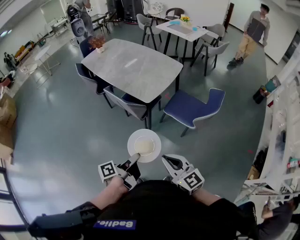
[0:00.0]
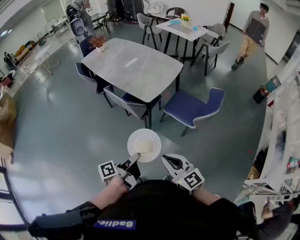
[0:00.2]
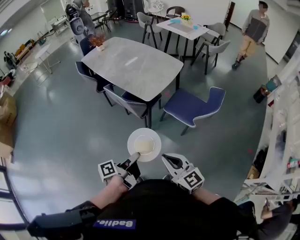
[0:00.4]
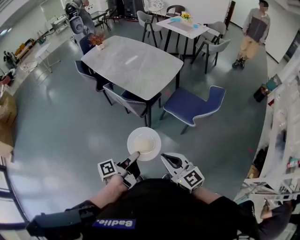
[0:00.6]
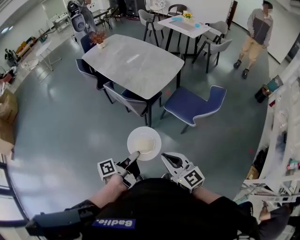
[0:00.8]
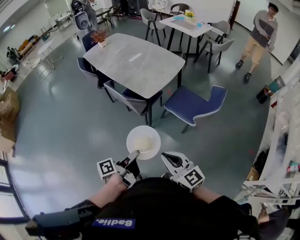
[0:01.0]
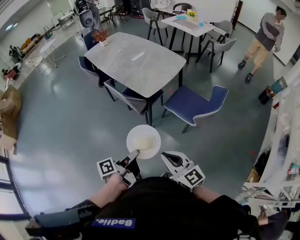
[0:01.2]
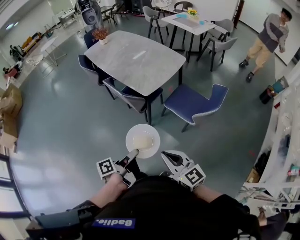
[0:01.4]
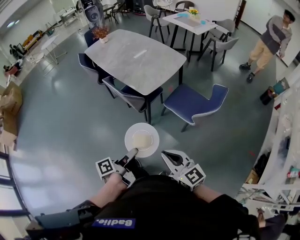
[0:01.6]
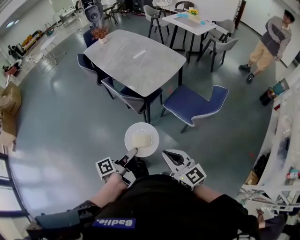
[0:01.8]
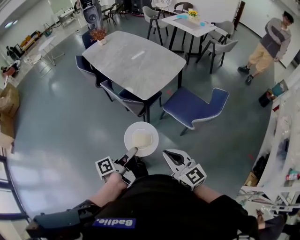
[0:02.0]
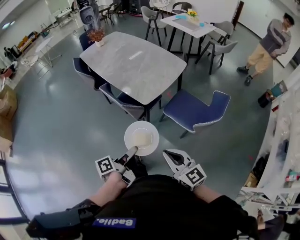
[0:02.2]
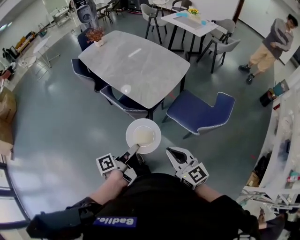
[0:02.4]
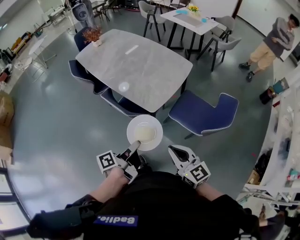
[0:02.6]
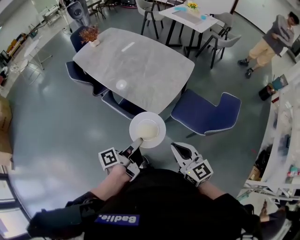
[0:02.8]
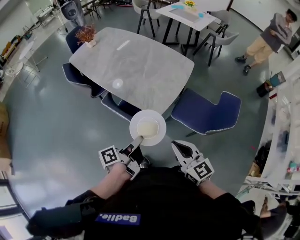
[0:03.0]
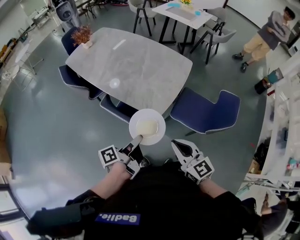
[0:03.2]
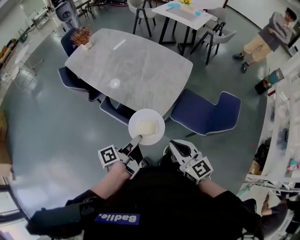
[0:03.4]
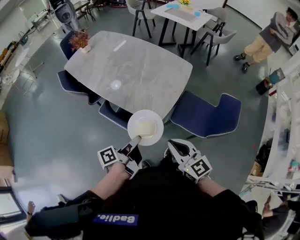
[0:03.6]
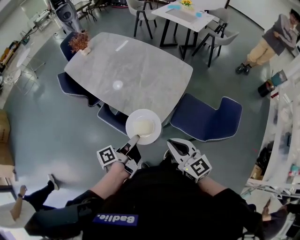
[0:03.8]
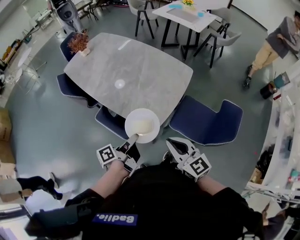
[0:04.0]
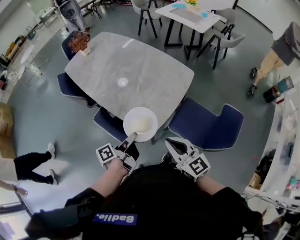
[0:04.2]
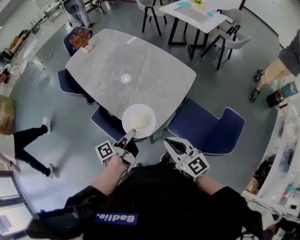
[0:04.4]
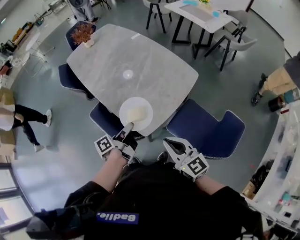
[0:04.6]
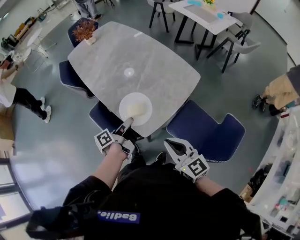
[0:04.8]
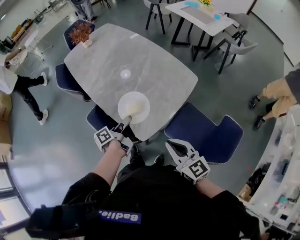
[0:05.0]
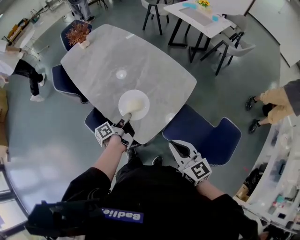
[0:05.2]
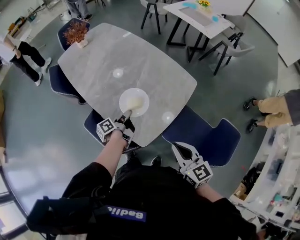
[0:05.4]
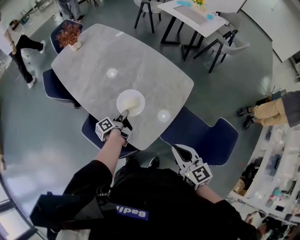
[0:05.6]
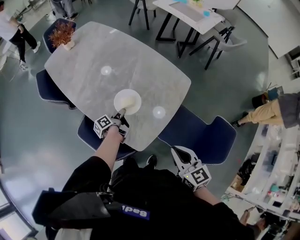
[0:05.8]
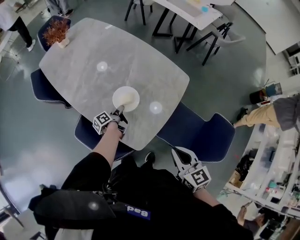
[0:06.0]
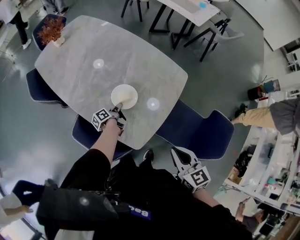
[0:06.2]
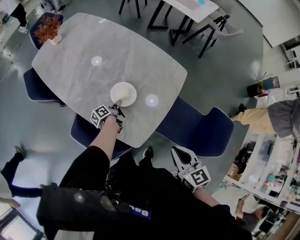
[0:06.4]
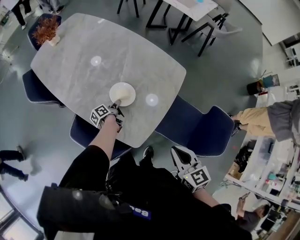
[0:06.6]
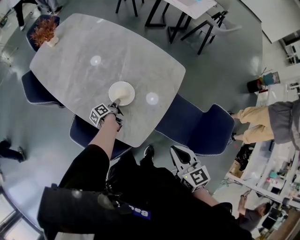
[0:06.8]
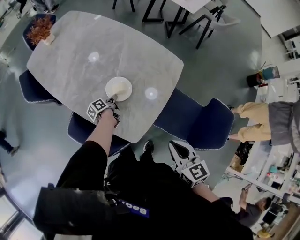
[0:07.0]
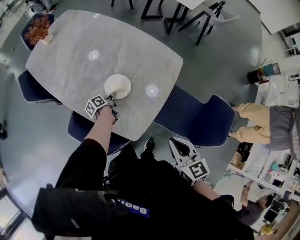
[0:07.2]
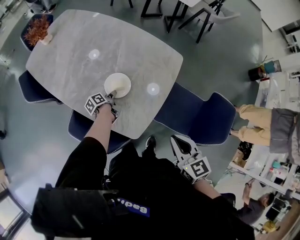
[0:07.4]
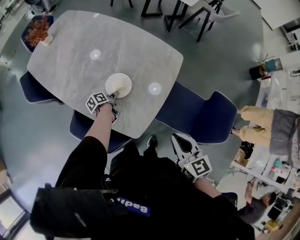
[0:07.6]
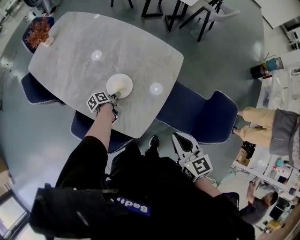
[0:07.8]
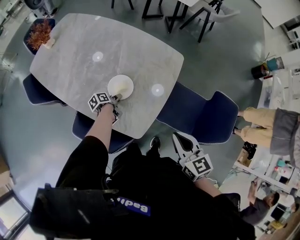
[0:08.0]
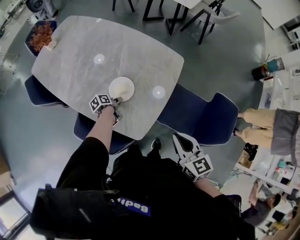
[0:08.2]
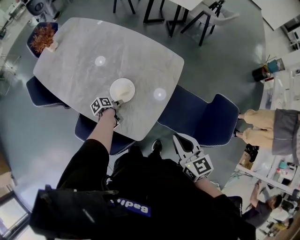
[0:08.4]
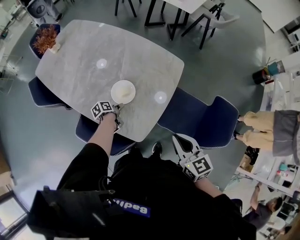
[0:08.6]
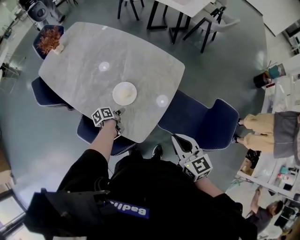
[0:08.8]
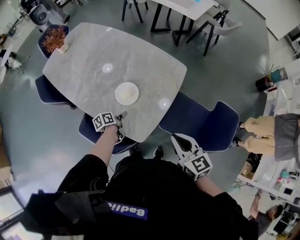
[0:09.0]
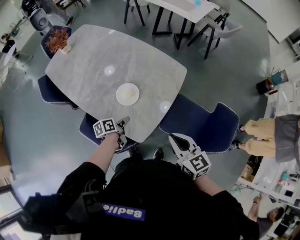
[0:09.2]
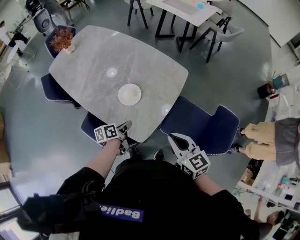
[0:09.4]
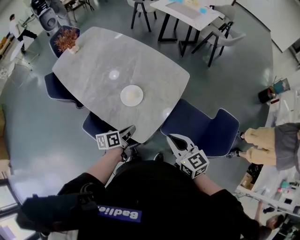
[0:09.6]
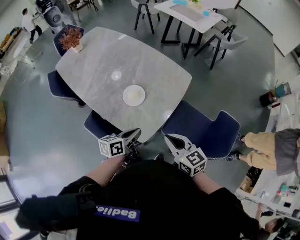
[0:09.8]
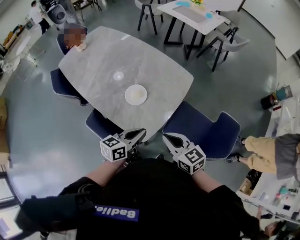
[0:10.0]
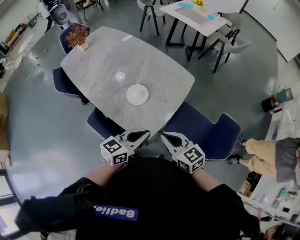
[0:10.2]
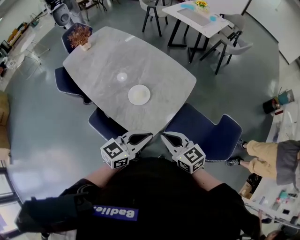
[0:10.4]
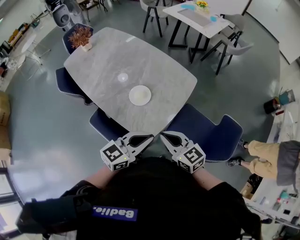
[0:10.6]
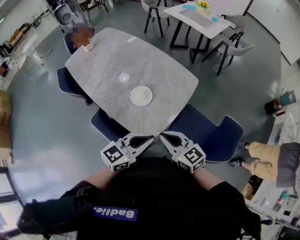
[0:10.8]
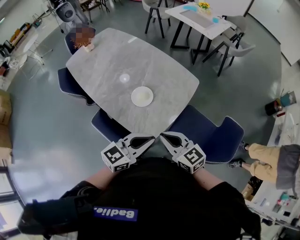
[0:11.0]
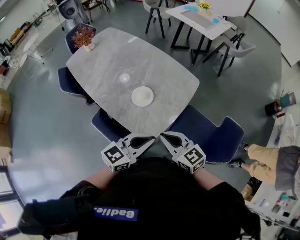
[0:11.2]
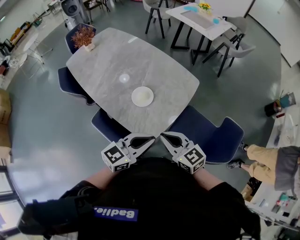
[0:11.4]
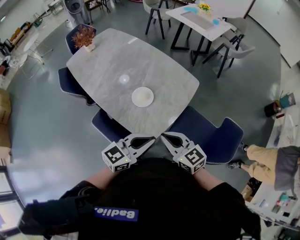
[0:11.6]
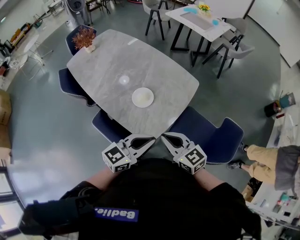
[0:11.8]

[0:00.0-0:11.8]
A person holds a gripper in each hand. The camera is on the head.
0:00.0 to 0:01.4: The right gripper changes place by some 5 cm.
0:01.4 to 0:03.0: The right gripper ends up about 30 cm from where it was.
0:03.0 to 0:04.4: The right gripper changes place by roughly 20 cm.
0:04.4 to 0:06.0: The right gripper ends up roughly 10 cm from where it was, and rotates roughly 20 degrees.
0:08.8 to 0:10.4: The right gripper moves approximately 5 cm, and changes its angle by some 20 degrees.

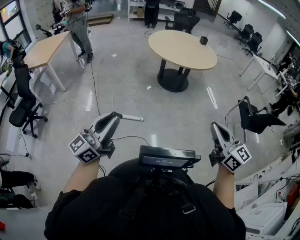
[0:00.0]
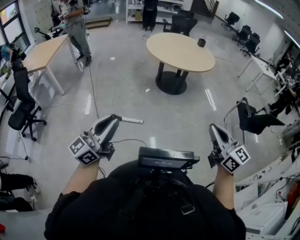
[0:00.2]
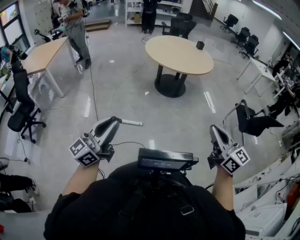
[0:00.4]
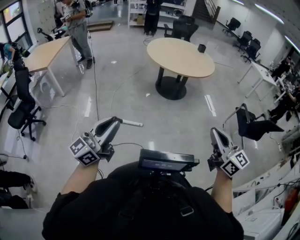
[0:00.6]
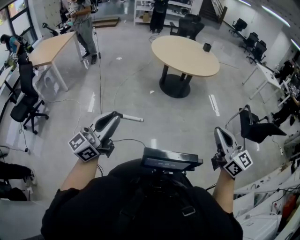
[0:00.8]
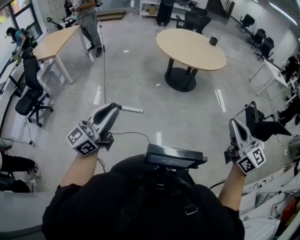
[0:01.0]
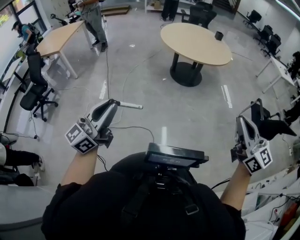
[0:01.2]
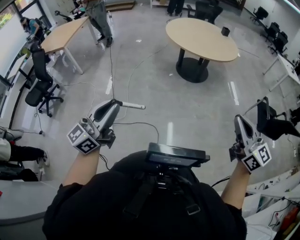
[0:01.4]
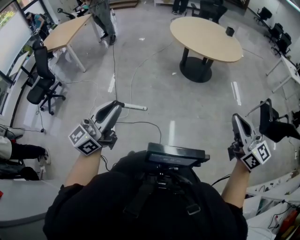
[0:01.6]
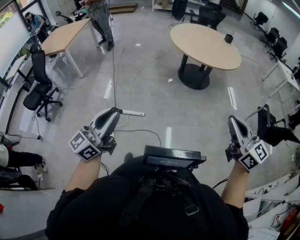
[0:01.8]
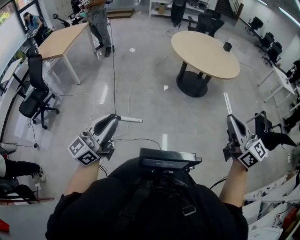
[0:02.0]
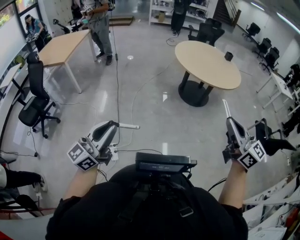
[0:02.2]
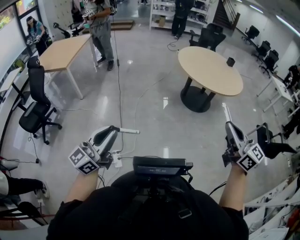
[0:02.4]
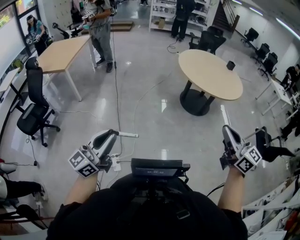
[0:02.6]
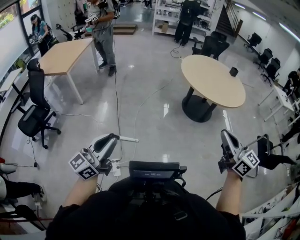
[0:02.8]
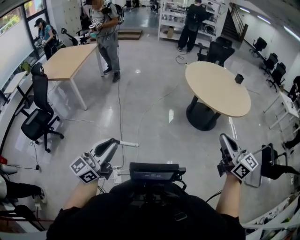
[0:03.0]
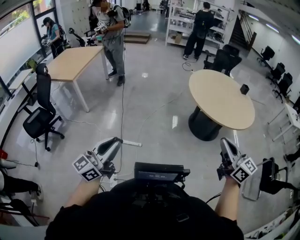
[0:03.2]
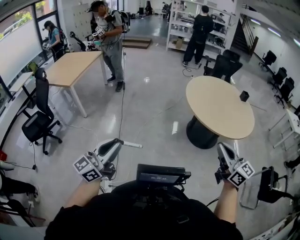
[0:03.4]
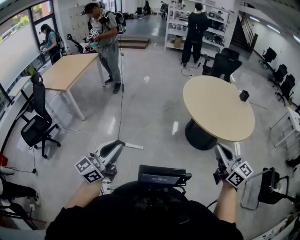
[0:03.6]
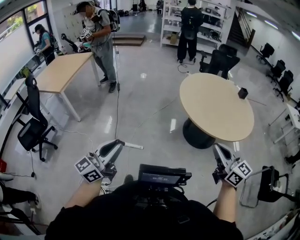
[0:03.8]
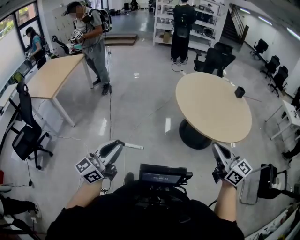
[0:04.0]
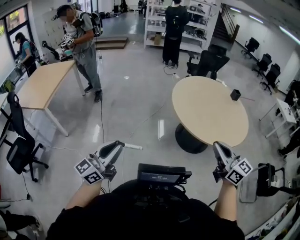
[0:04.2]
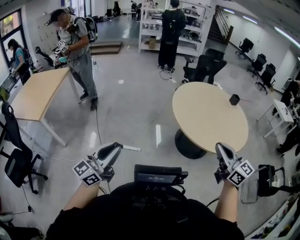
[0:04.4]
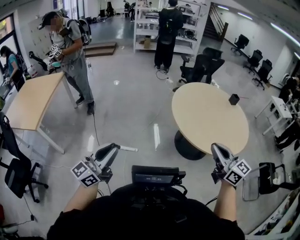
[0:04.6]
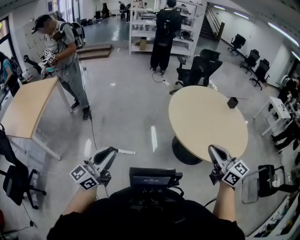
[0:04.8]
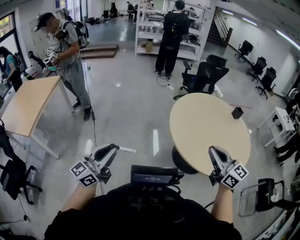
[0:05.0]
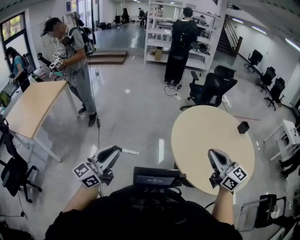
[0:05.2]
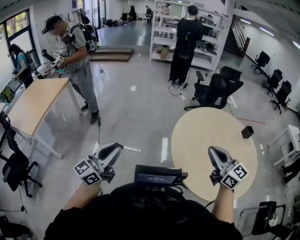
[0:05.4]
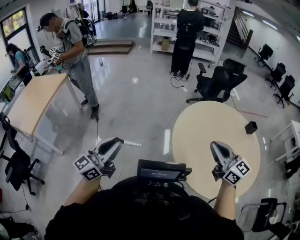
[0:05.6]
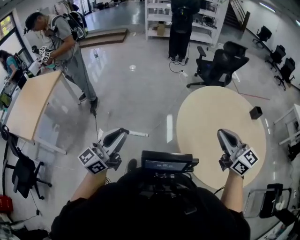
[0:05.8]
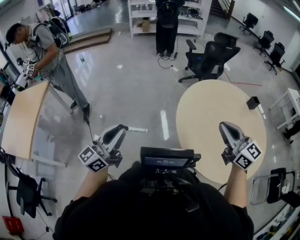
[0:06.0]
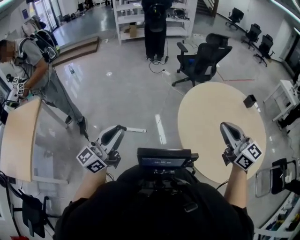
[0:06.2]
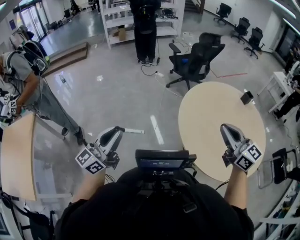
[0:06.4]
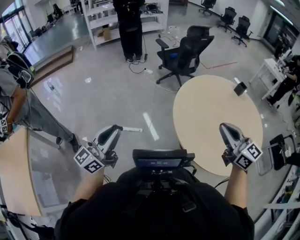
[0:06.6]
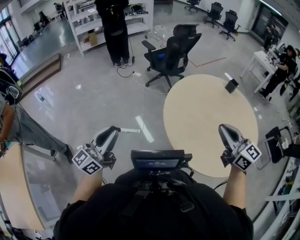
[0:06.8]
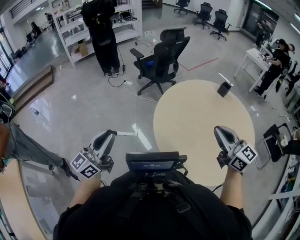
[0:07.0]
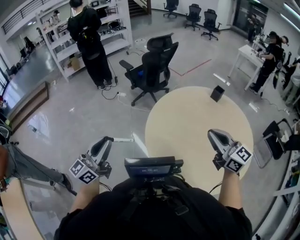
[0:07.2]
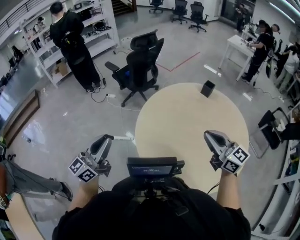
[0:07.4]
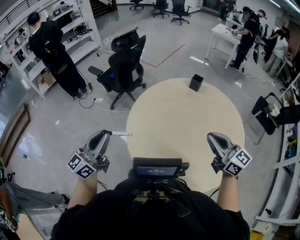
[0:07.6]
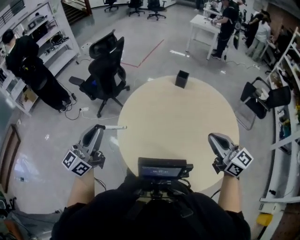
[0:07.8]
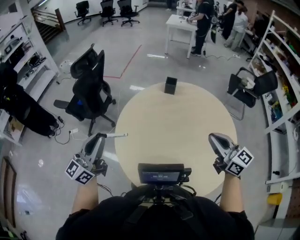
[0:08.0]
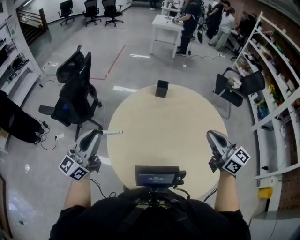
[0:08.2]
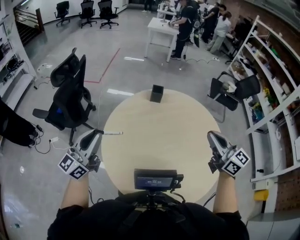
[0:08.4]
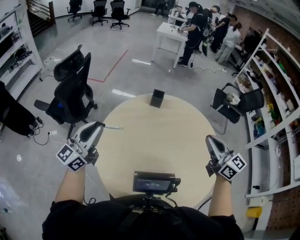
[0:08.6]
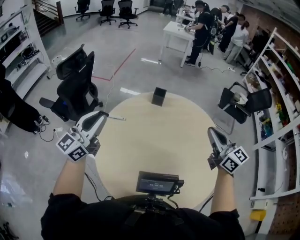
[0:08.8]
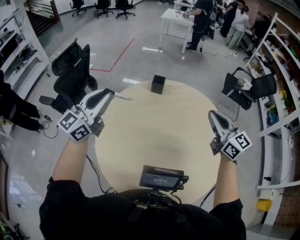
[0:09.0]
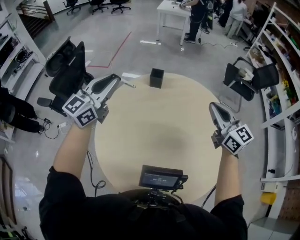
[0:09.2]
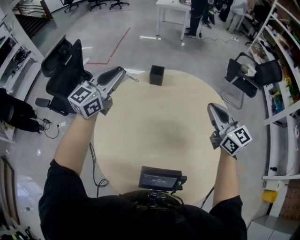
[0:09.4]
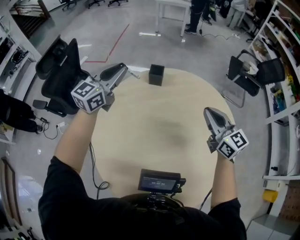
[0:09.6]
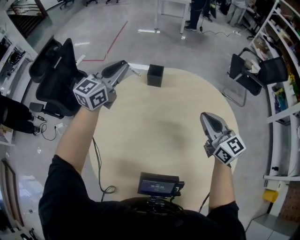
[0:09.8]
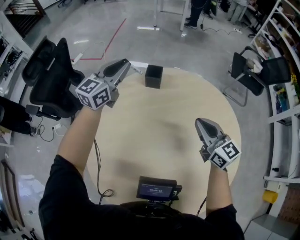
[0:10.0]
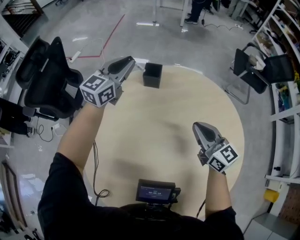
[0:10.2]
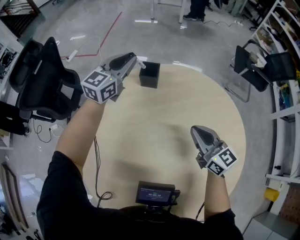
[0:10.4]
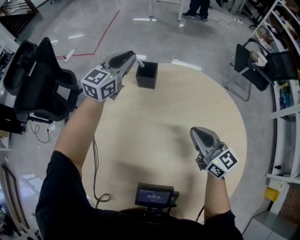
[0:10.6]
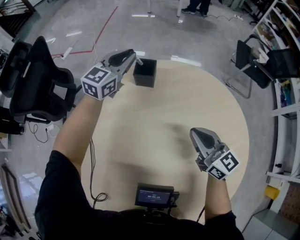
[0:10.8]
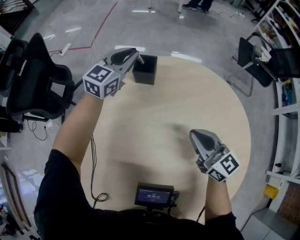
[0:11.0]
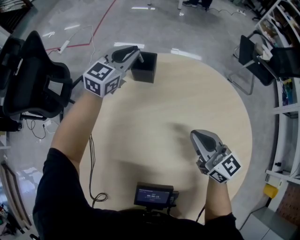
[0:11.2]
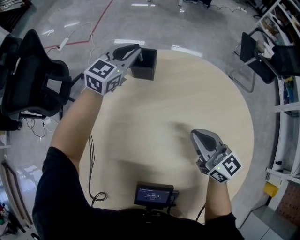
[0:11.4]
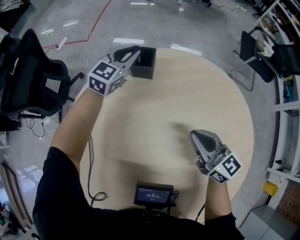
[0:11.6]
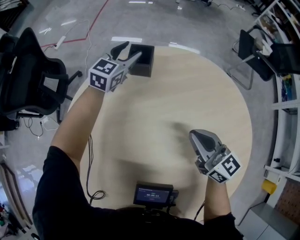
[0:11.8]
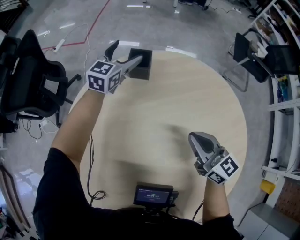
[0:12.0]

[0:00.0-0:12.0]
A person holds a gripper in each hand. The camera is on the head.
0:00.0 to 0:01.6: The right gripper goes some 10 cm to the right and forward.
0:01.6 to 0:03.0: The right gripper shifts about 40 cm forward and to the left. The left gripper travels to the left and forward by roughly 35 cm.
0:03.0 to 0:04.4: Both grippers travel together forward, approximately 40 cm.
0:04.4 to 0:06.0: Both grippers are carried forward, some 50 cm.
0:06.0 to 0:07.6: The right gripper changes place by about 25 cm, and rotates roughly 40 degrees. Meanwhile the left gripper moves some 50 cm, and changes its angle by about 40 degrees.
0:07.6 to 0:09.0: The left gripper ends up about 40 cm from where it was, and rotates about 30 degrees. The right gripper shifts by about 25 cm, and rotates about 30 degrees.
0:09.0 to 0:10.4: The left gripper goes about 40 cm forward and downward, while the right gripper heads downward and forward, covering roughly 30 cm.
0:10.4 to 0:12.0: The left gripper goes roughly 15 cm downward and forward, and opens.
